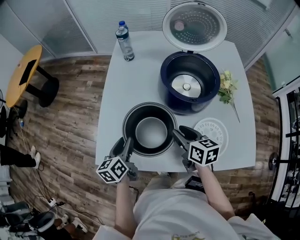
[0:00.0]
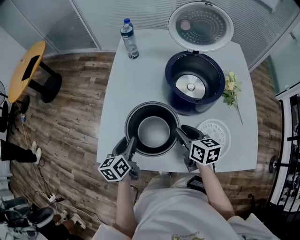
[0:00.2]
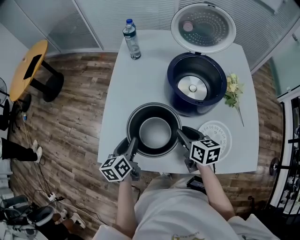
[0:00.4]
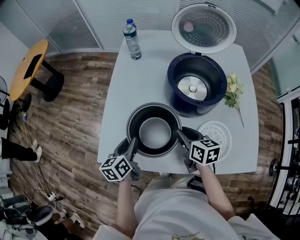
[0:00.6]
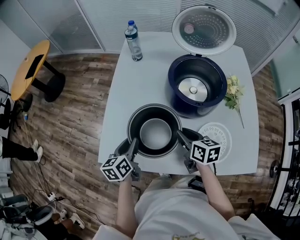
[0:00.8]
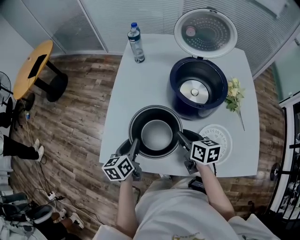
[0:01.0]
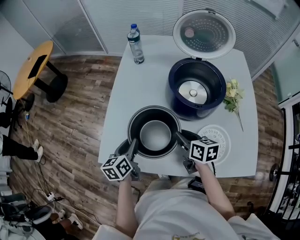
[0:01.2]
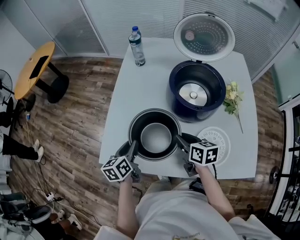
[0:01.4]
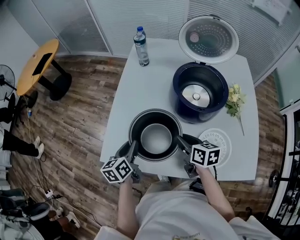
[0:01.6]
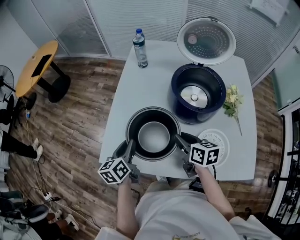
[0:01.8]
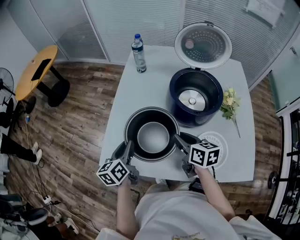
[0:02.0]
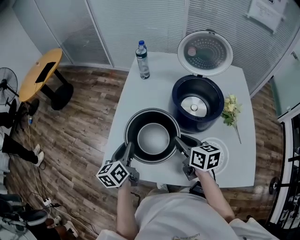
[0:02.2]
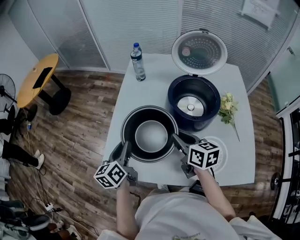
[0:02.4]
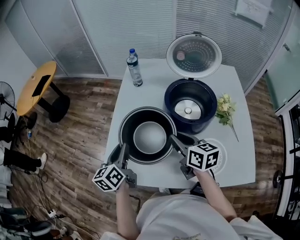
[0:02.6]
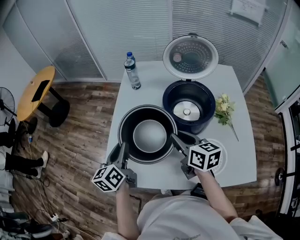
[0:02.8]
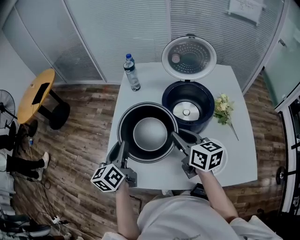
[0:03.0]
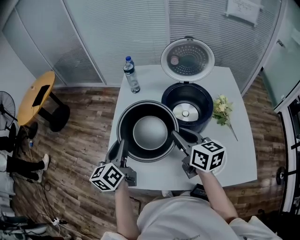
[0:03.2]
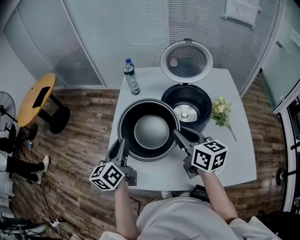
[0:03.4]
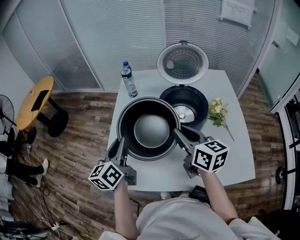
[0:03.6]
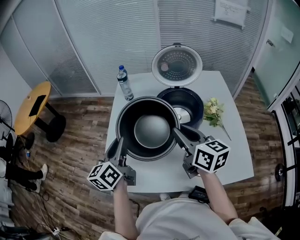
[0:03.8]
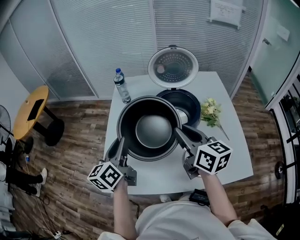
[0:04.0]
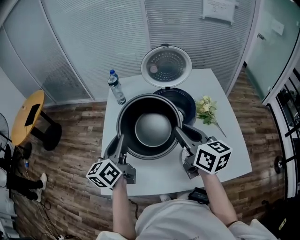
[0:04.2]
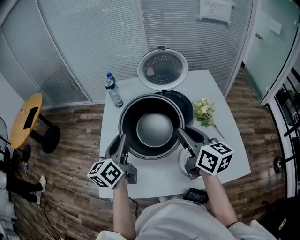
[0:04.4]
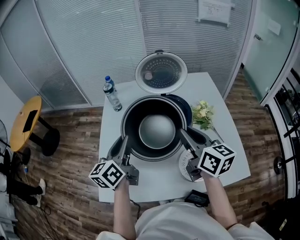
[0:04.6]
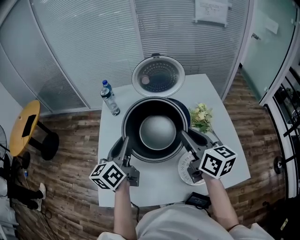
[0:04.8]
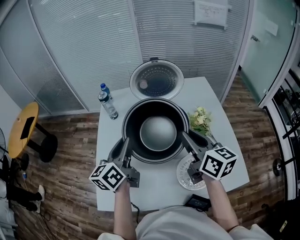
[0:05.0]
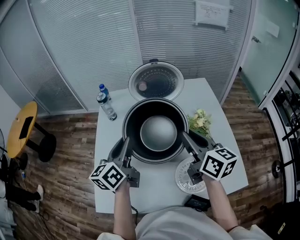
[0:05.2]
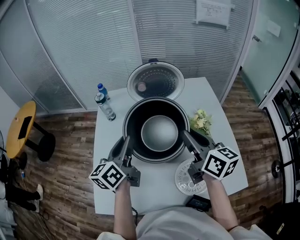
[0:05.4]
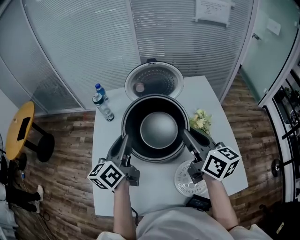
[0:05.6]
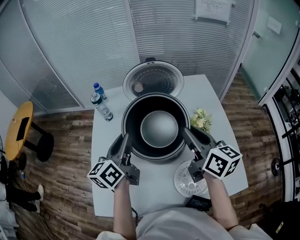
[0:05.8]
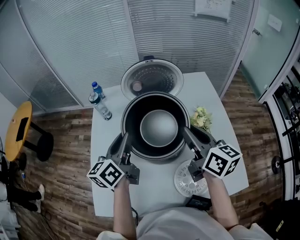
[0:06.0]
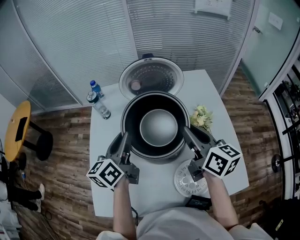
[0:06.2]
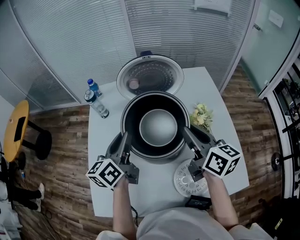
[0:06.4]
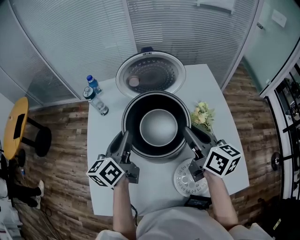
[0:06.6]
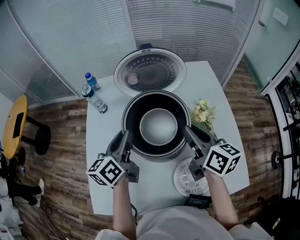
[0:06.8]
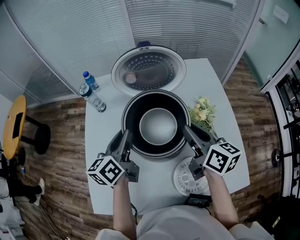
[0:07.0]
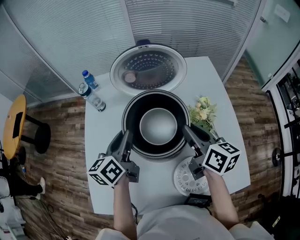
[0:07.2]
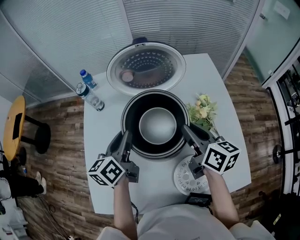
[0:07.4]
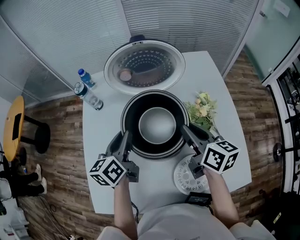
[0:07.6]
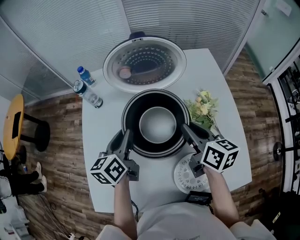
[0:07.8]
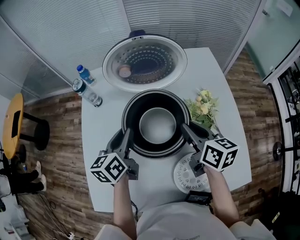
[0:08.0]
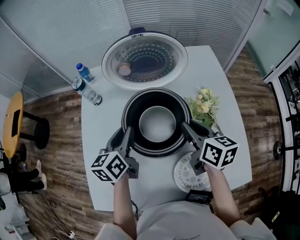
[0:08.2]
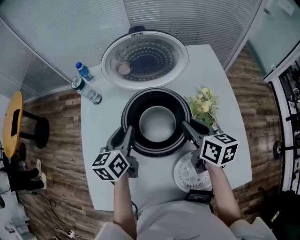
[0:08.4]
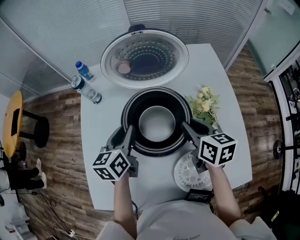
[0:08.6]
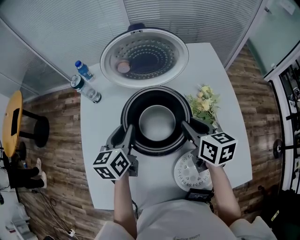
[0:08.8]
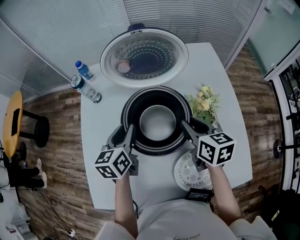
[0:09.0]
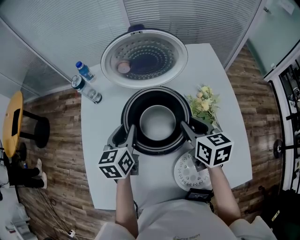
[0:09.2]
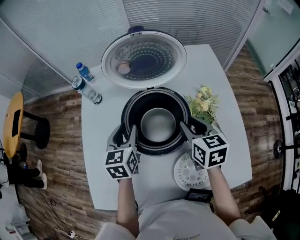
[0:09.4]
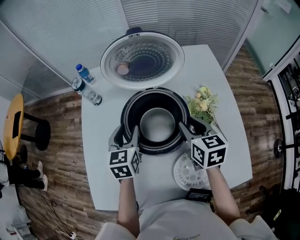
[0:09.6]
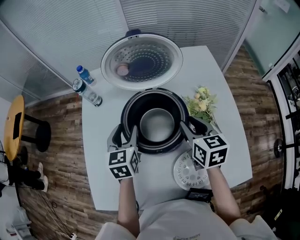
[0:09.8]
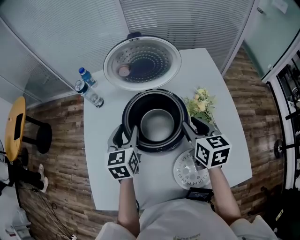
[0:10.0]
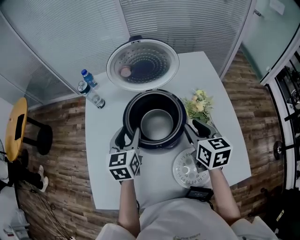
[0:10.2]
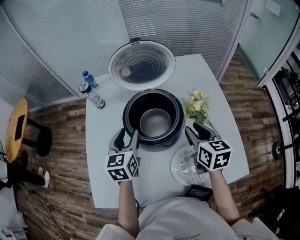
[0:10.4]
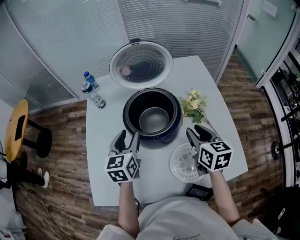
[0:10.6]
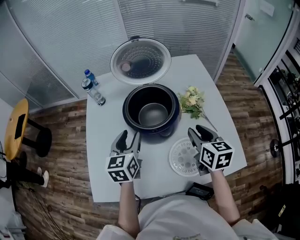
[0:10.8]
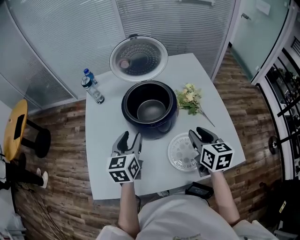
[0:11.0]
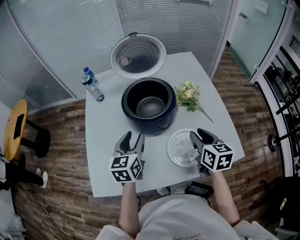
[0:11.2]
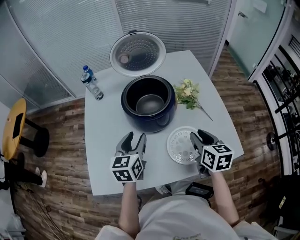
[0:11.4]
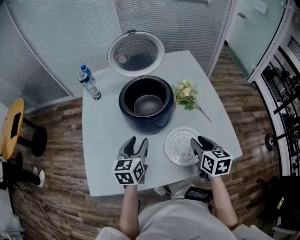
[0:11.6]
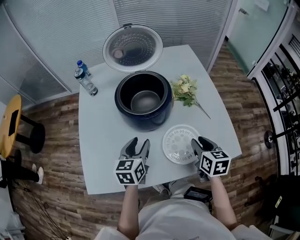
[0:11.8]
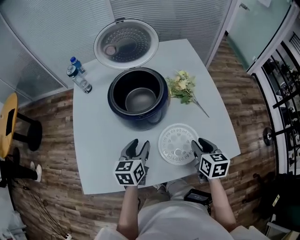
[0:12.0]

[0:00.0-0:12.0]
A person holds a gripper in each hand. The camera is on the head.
0:00.0 to 0:01.6: There are only small adjustments of the grippers.
0:01.6 to 0:03.0: The grippers both shift upward by about 15 cm.
0:03.0 to 0:04.4: Both grippers travel together to the right and upward, approximately 15 cm.
0:04.4 to 0:06.0: Both grippers travel together forward and to the right, about 15 cm.
0:06.0 to 0:07.6: Both grippers move downward, approximately 10 cm.
0:07.6 to 0:09.0: The grippers move only a little.
0:09.0 to 0:10.4: The grippers both shift backward by roughly 5 cm. The left gripper opens.
0:10.4 to 0:12.0: The two grippers go about 20 cm backward, downward and to the right.

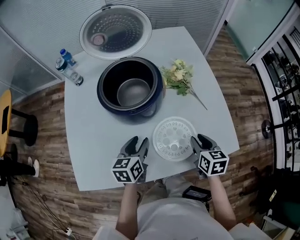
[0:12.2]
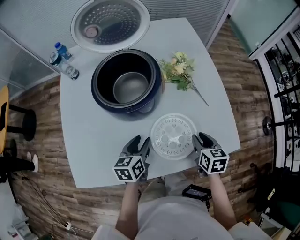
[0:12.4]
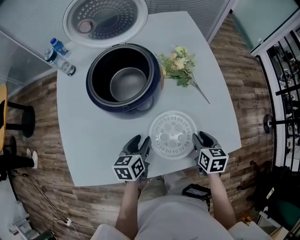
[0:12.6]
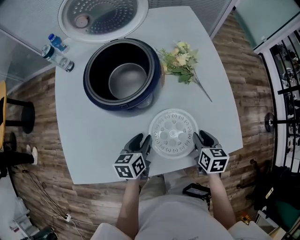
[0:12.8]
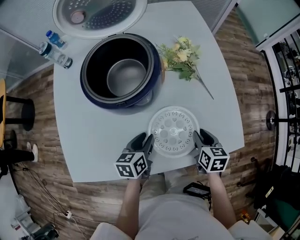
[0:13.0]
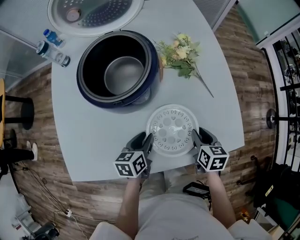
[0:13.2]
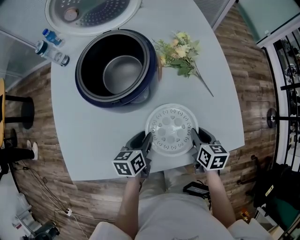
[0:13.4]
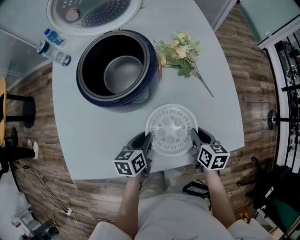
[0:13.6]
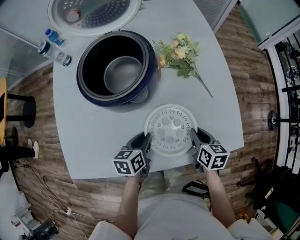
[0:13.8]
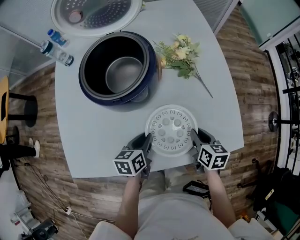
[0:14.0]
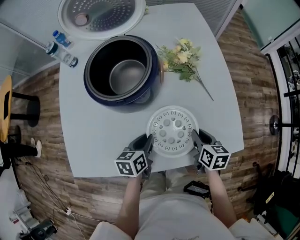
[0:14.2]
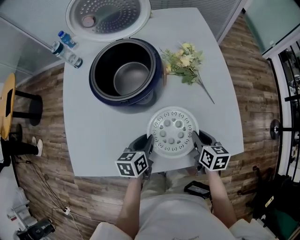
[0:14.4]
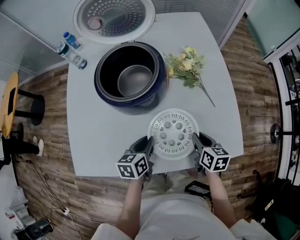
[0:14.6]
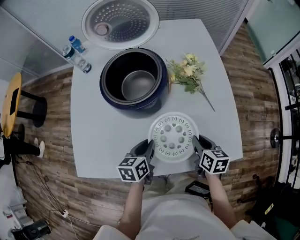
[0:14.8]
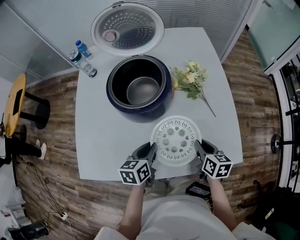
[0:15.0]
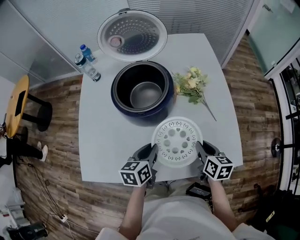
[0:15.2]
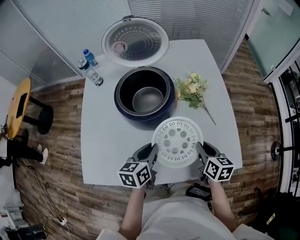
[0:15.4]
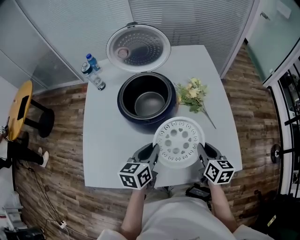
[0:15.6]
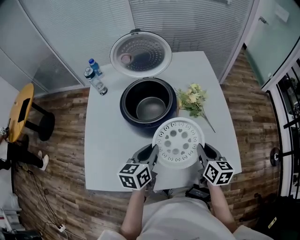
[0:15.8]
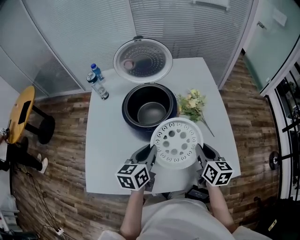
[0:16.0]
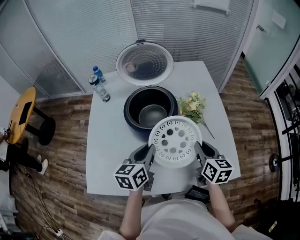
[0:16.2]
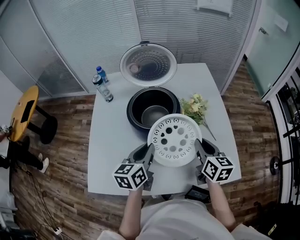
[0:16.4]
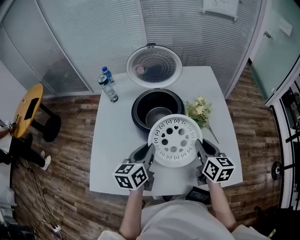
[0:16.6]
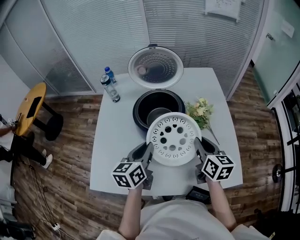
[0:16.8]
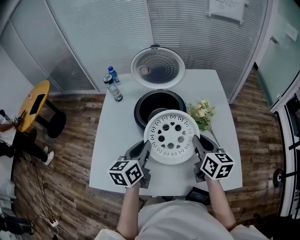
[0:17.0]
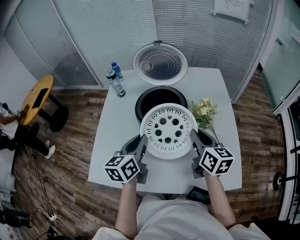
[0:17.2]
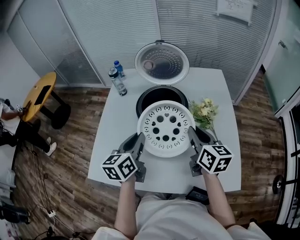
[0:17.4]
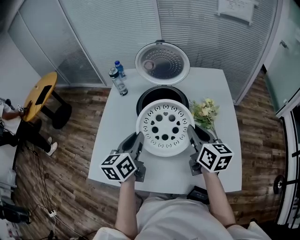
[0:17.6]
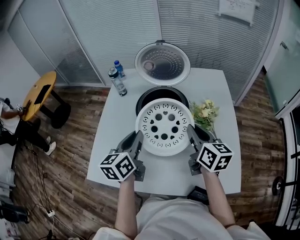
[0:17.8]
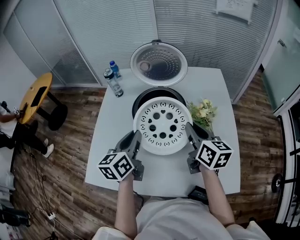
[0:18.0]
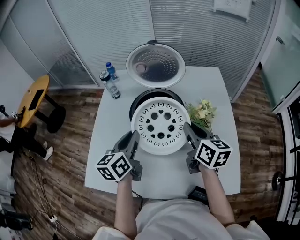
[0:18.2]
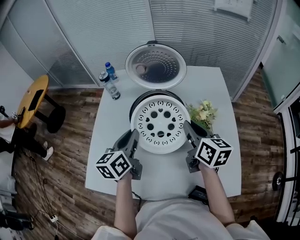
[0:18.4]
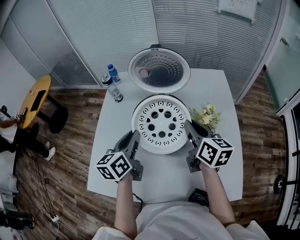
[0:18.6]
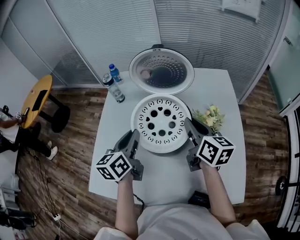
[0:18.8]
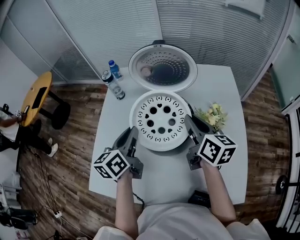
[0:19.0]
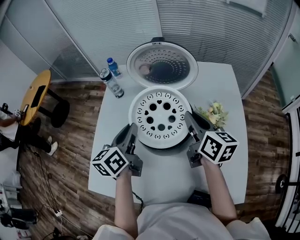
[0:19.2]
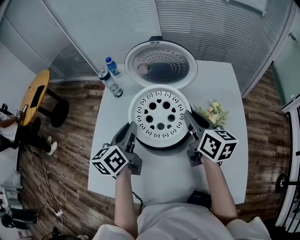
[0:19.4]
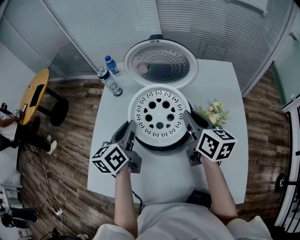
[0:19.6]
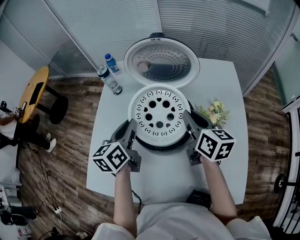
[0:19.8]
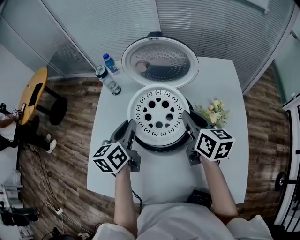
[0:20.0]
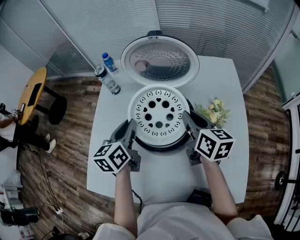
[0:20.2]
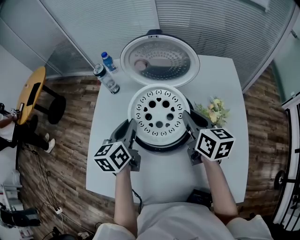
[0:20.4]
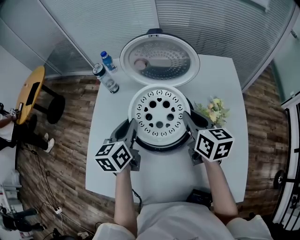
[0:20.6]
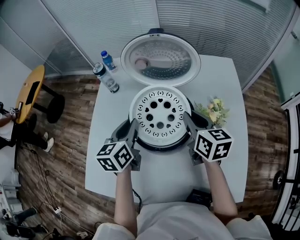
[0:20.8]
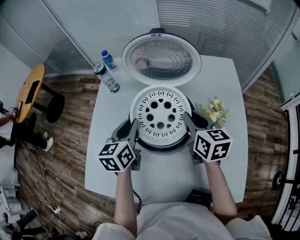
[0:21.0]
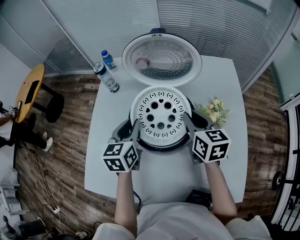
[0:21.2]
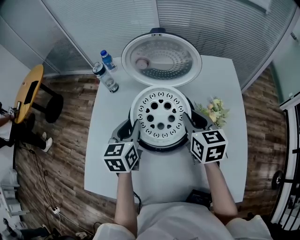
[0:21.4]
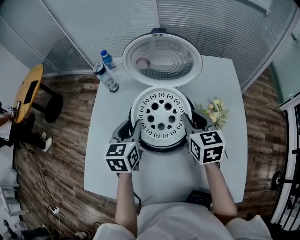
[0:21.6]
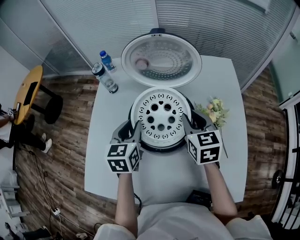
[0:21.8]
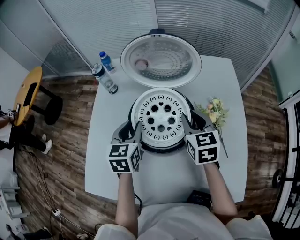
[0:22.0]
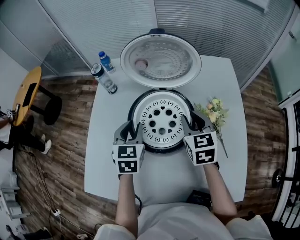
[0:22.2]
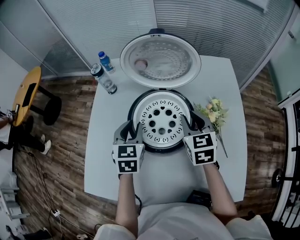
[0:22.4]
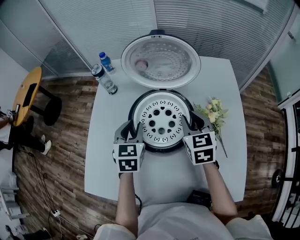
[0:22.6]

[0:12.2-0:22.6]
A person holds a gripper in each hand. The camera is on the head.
0:12.2 to 0:13.6: The left gripper shifts approximately 10 cm downward and to the right, and closes. The right gripper goes about 10 cm downward.
0:13.6 to 0:15.2: Both grippers move upward, roughly 10 cm.
0:15.2 to 0:16.6: The two grippers go some 15 cm upward and to the left.
0:16.6 to 0:18.2: The left gripper changes place by some 5 cm. Meanwhile the right gripper travels forward by some 5 cm.
0:18.2 to 0:19.6: Both grippers move forward, roughly 10 cm.
0:19.6 to 0:21.2: The left gripper turns by some 20 degrees.
0:21.2 to 0:22.6: The right gripper turns by approximately 20 degrees.

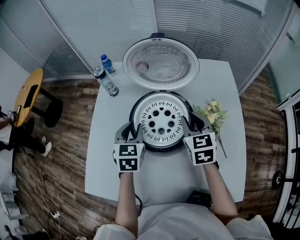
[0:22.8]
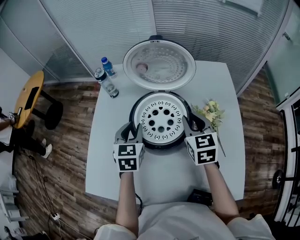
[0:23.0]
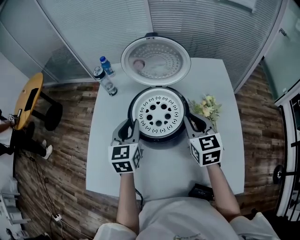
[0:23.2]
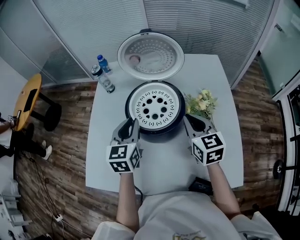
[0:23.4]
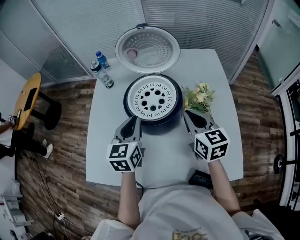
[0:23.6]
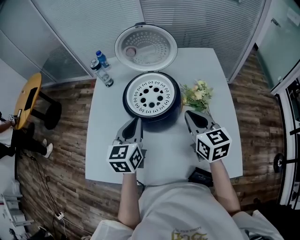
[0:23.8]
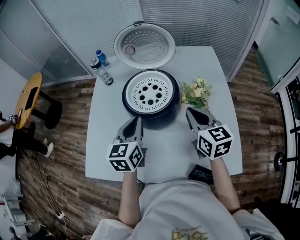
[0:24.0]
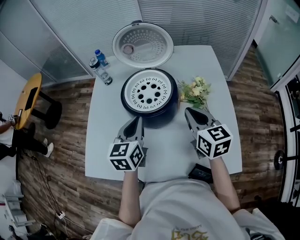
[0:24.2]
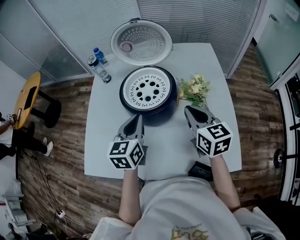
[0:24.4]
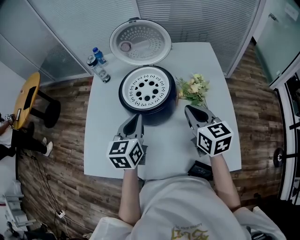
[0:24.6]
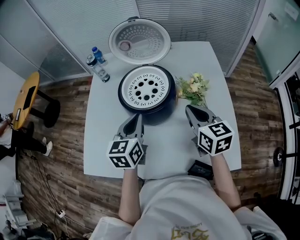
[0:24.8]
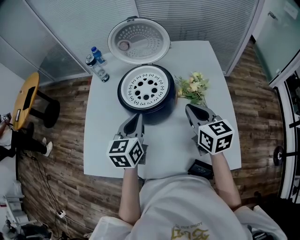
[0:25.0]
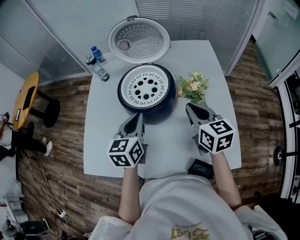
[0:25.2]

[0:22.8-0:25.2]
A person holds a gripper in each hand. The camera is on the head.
0:22.8 to 0:24.0: The right gripper moves backward, approximately 15 cm, and closes its fingers; the left gripper is displaced backward and upward by approximately 15 cm, turns by roughly 20 degrees, and closes.
0:24.0 to 0:25.2: The grippers stay close to where they were, moving slightly.
